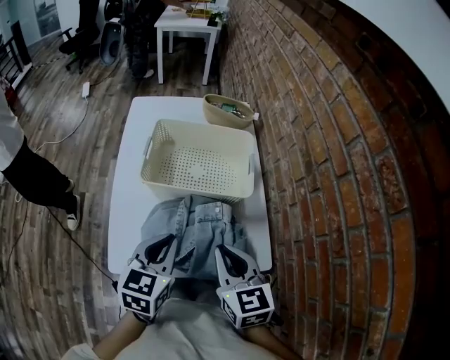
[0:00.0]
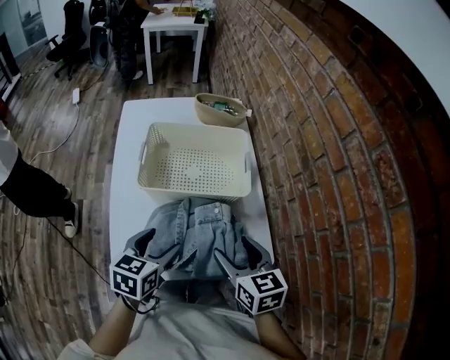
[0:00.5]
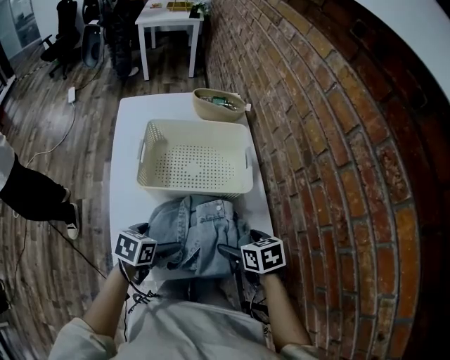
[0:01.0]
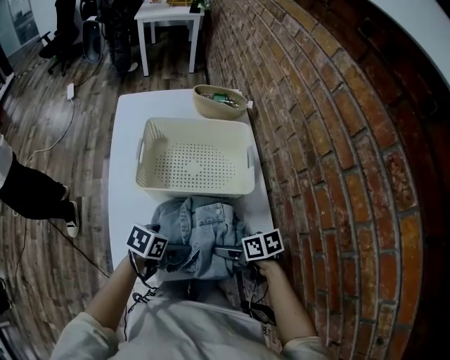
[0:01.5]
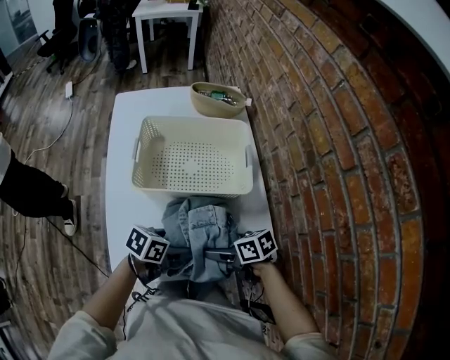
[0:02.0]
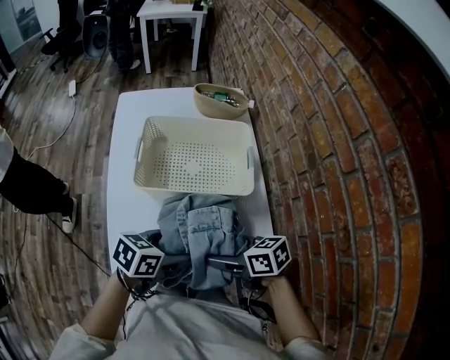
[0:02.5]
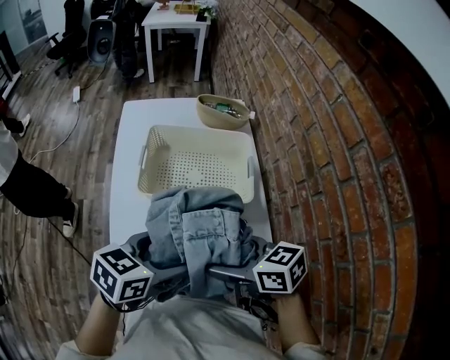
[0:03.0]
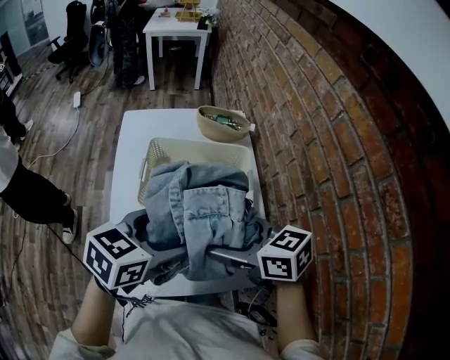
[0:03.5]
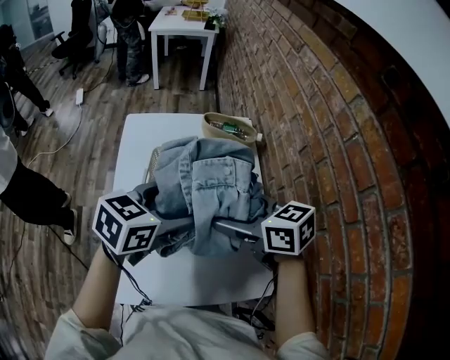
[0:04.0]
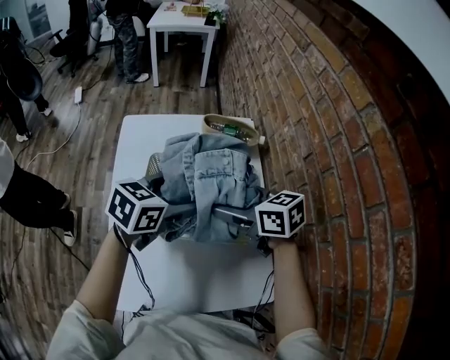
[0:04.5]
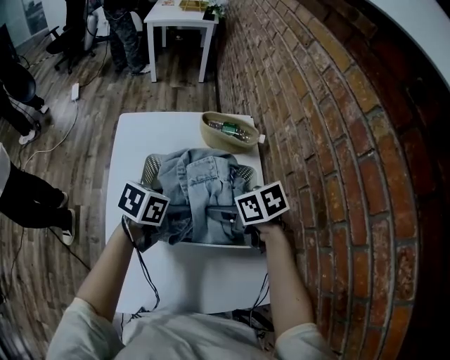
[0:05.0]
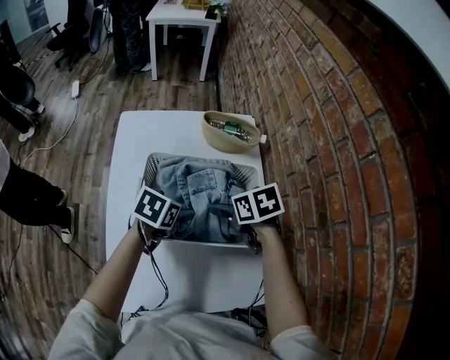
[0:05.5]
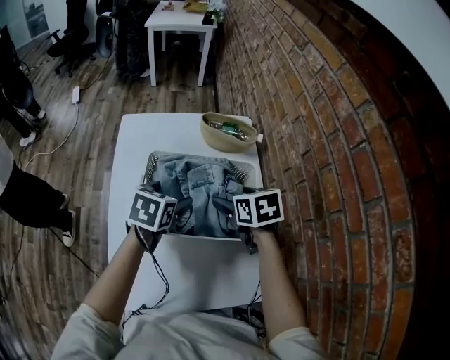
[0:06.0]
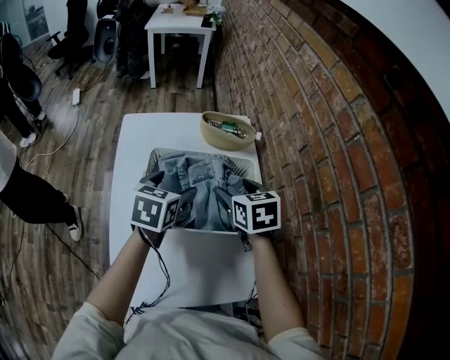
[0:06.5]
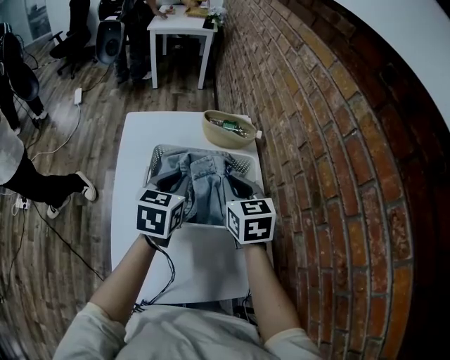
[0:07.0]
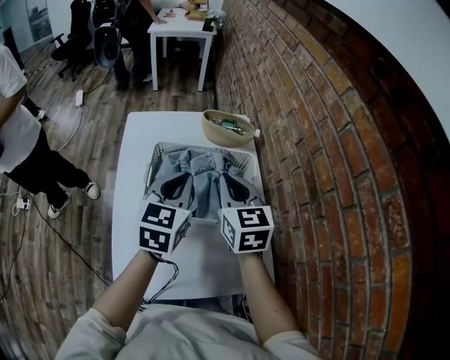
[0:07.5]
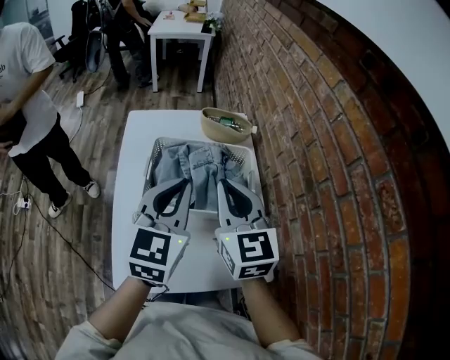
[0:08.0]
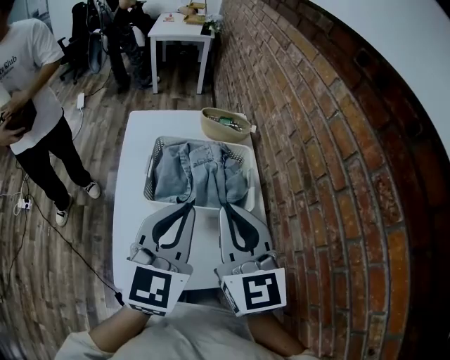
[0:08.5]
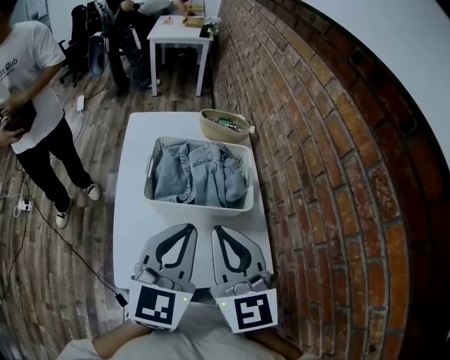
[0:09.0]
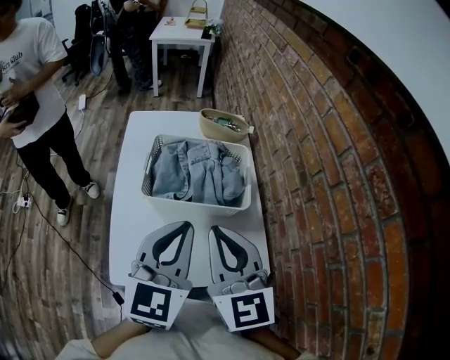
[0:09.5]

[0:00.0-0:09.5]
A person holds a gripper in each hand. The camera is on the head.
0:00.0 to 0:02.0: The grippers both shift downward by about 15 cm. The right gripper turns by some 50 degrees, and opens up; the left gripper changes its angle by approximately 50 degrees, and opens.
0:02.0 to 0:04.0: The two grippers go some 25 cm upward. The right gripper rotates some 30 degrees. The left gripper swivels about 30 degrees.
0:04.0 to 0:05.5: Both grippers travel together downward and forward, approximately 20 cm. The right gripper rotates approximately 30 degrees, while the left gripper rotates some 30 degrees.
0:05.5 to 0:07.5: Both grippers move upward, some 15 cm. The left gripper angles its fingers upward, by roughly 30 degrees, and closes up, while the right gripper angles its fingers upward, by some 40 degrees, and closes up.
0:07.5 to 0:09.5: The two grippers go about 20 cm backward.

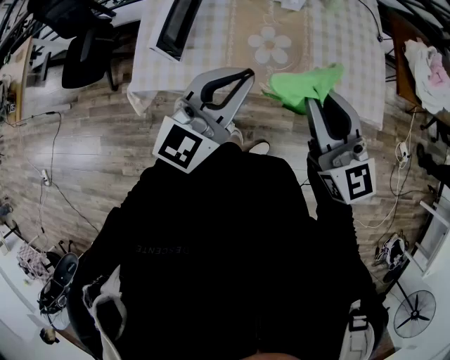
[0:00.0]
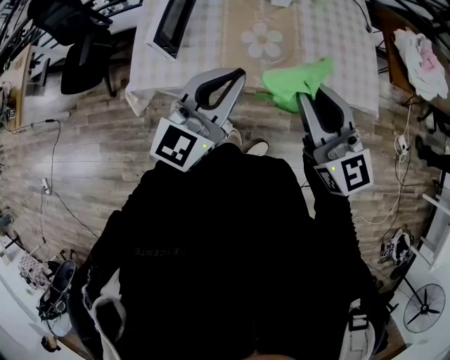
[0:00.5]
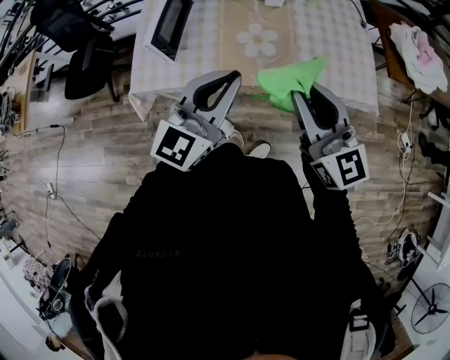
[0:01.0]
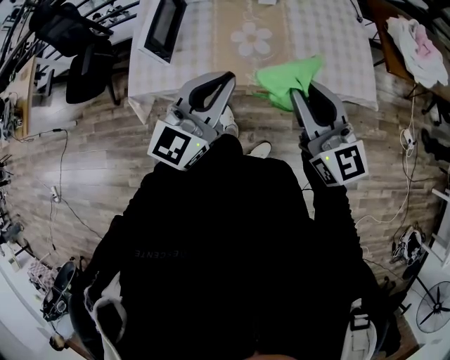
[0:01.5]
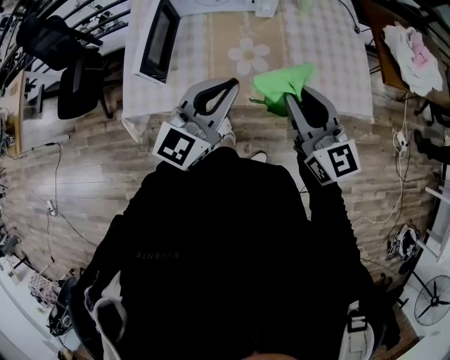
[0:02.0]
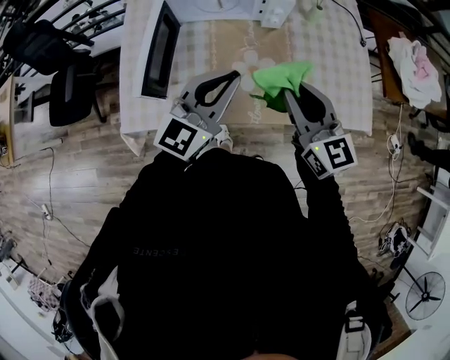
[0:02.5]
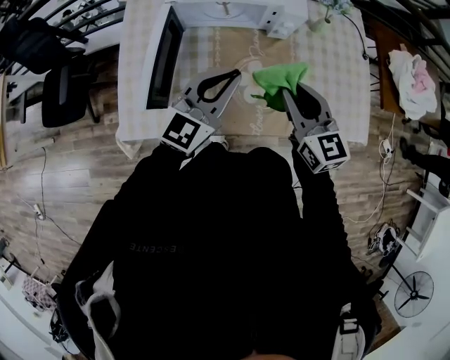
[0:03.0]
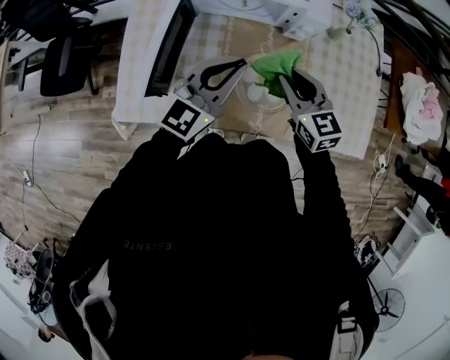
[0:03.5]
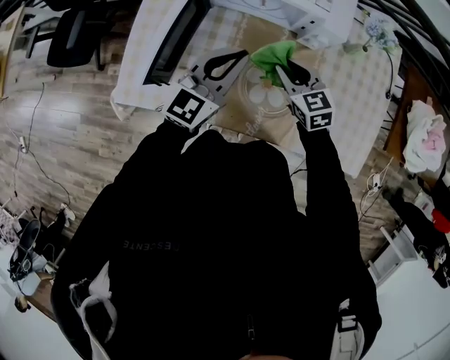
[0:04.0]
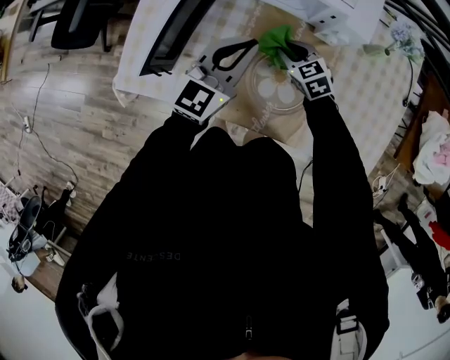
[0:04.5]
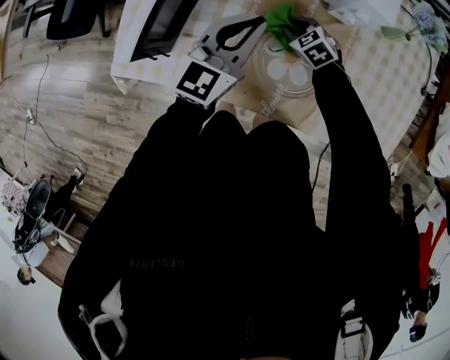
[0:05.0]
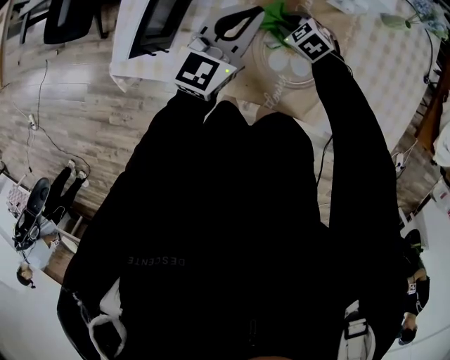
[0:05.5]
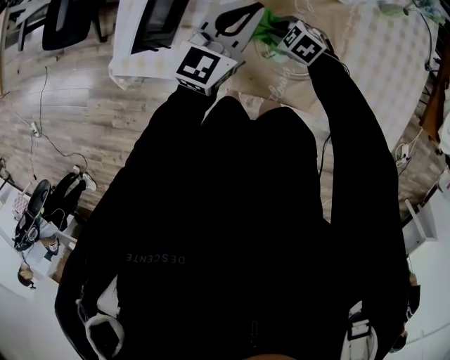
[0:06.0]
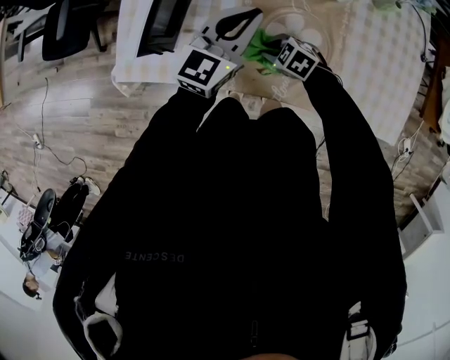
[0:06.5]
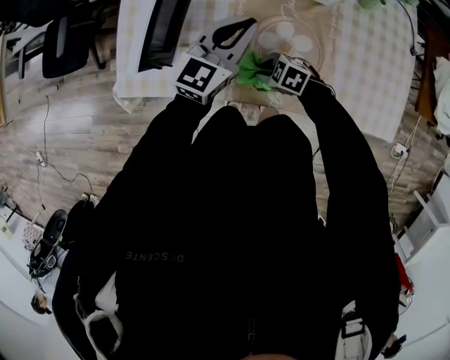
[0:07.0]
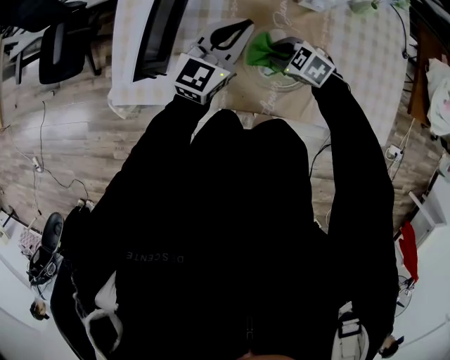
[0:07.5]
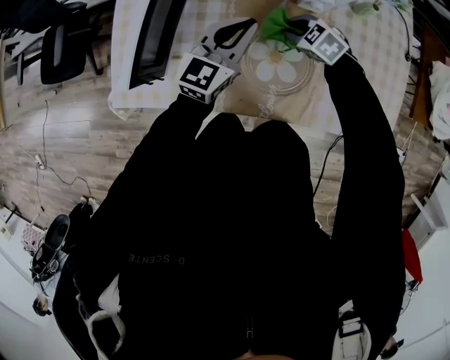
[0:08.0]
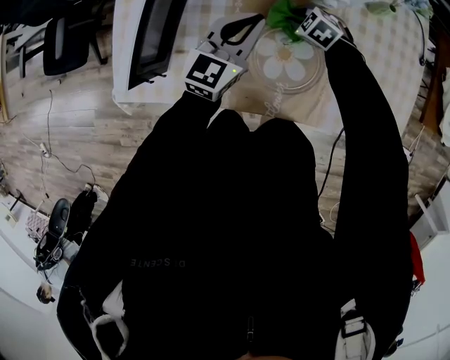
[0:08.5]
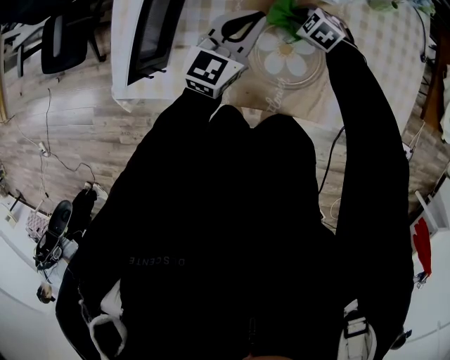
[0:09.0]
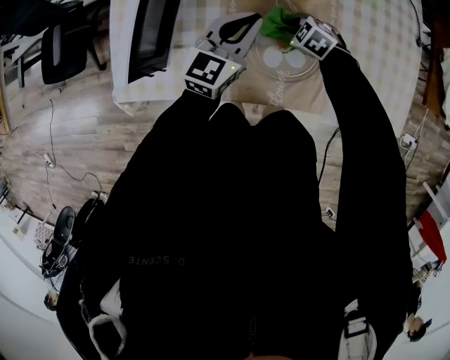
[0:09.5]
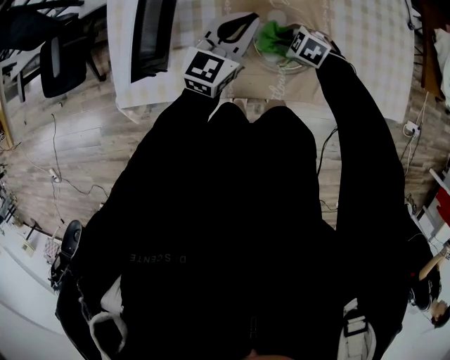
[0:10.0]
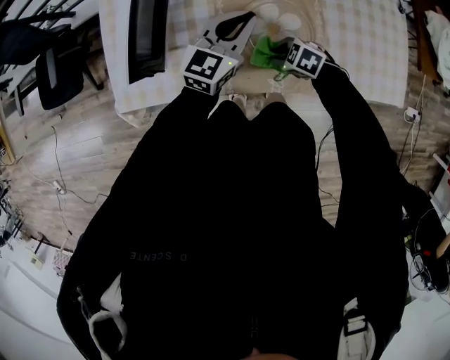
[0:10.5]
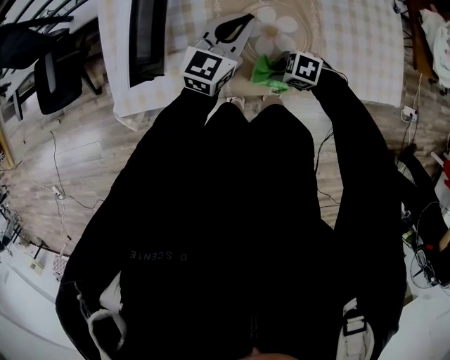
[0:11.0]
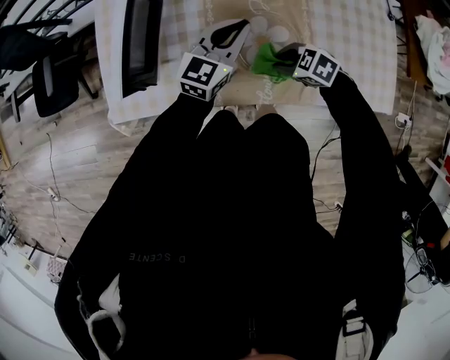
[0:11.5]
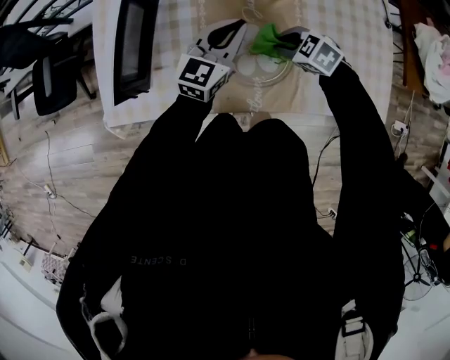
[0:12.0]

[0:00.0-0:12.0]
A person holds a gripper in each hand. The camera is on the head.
0:00.0 to 0:02.0: The left gripper travels backward and back again, approximately 5 cm each way, while the right gripper moves approximately 5 cm backward and comes back.
0:02.0 to 0:04.0: The left gripper is displaced forward by roughly 25 cm, while the right gripper travels forward and downward by approximately 35 cm, and tilts its fingers approximately 30 degrees downward.
0:04.0 to 0:06.0: The left gripper heads downward, covering some 10 cm. Meanwhile the right gripper is displaced downward by approximately 20 cm, and changes its angle by roughly 40 degrees.
0:06.0 to 0:08.0: The right gripper moves some 15 cm.
0:08.0 to 0:10.0: The right gripper shifts approximately 10 cm backward and downward.
0:10.0 to 0:12.0: The left gripper shifts by approximately 5 cm; the right gripper is displaced upward by approximately 10 cm.

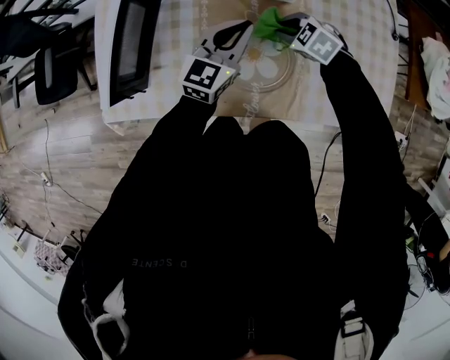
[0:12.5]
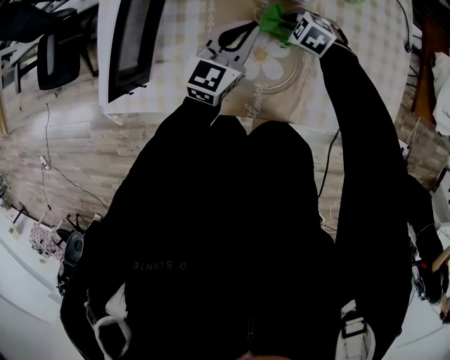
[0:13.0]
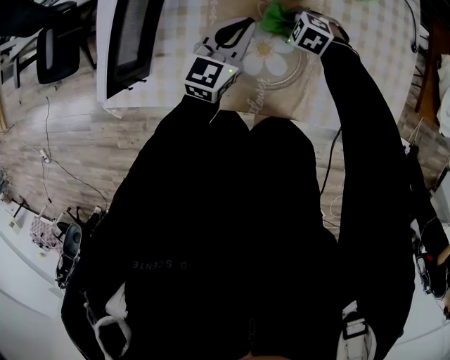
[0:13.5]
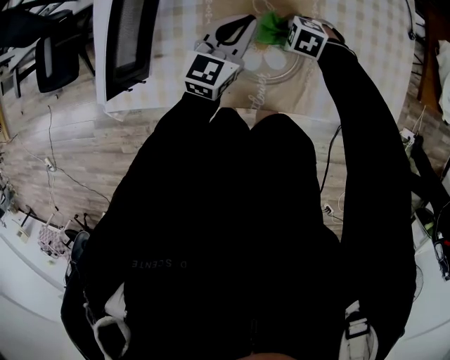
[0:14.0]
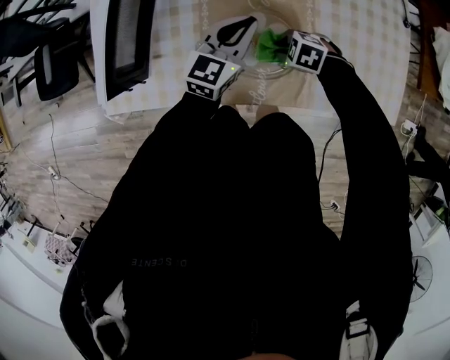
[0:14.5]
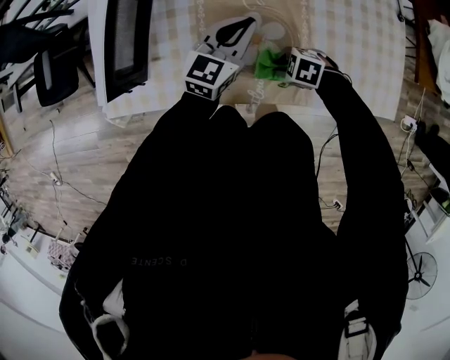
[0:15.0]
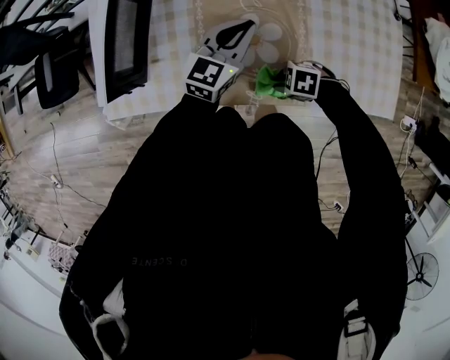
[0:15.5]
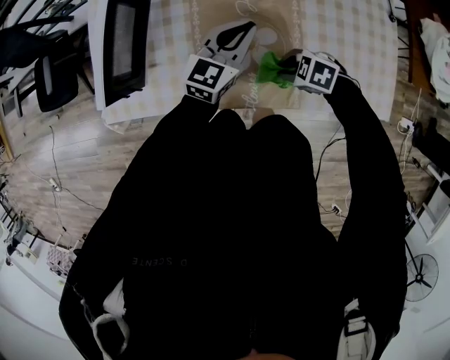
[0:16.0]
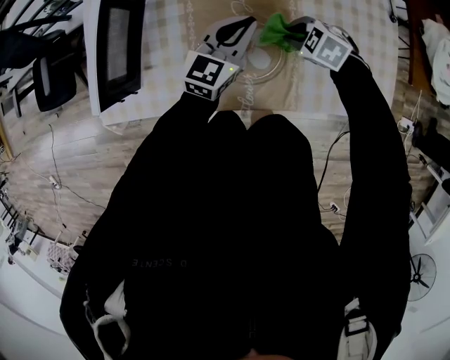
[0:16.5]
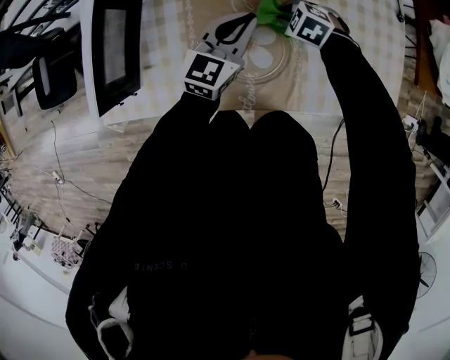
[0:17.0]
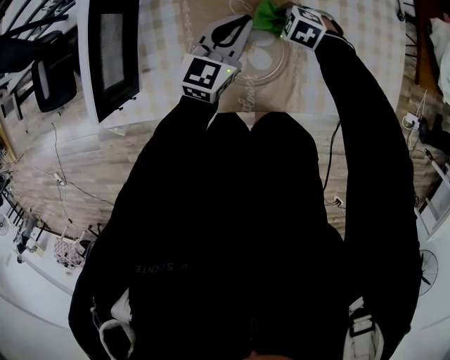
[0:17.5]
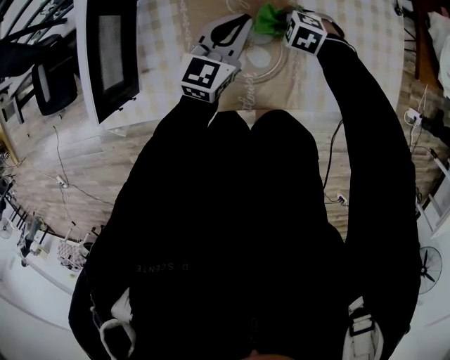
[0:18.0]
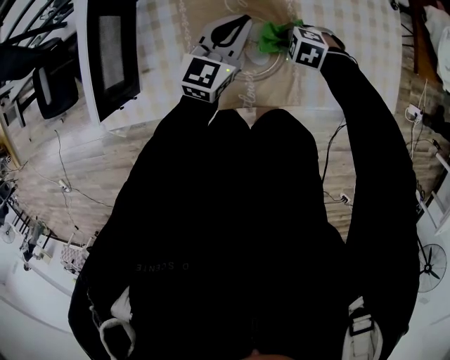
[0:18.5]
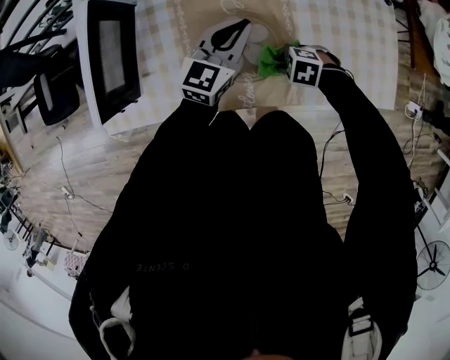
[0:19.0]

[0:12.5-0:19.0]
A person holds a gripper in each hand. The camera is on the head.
0:12.5 to 0:14.5: The right gripper ends up some 15 cm from where it was.
0:14.5 to 0:17.0: The right gripper ends up roughly 15 cm from where it was. The left gripper shifts by approximately 5 cm.
0:17.0 to 0:19.0: The right gripper shifts by about 20 cm.
